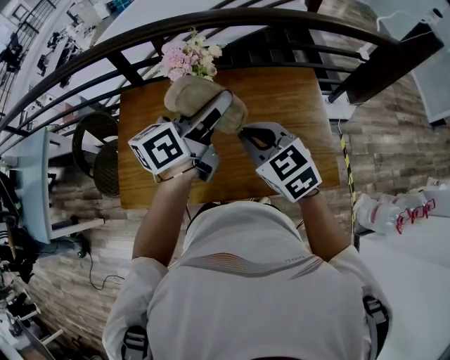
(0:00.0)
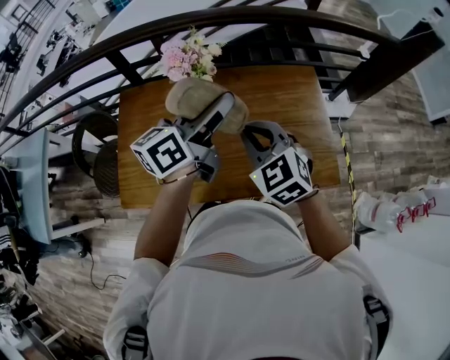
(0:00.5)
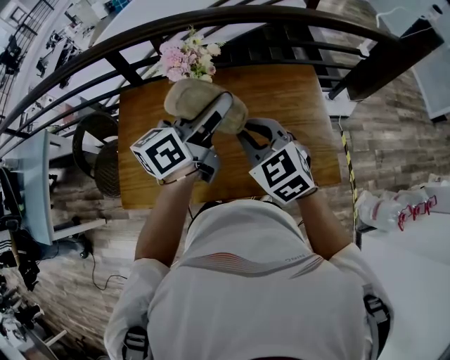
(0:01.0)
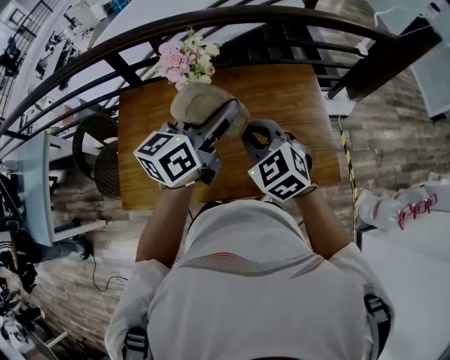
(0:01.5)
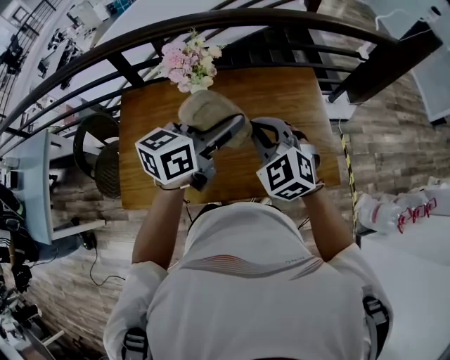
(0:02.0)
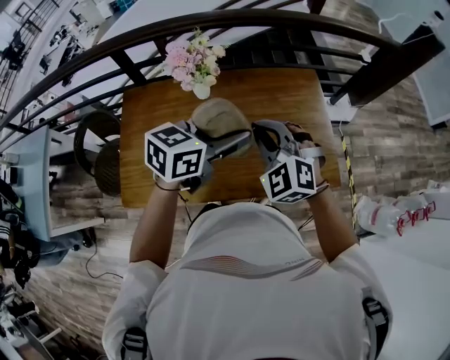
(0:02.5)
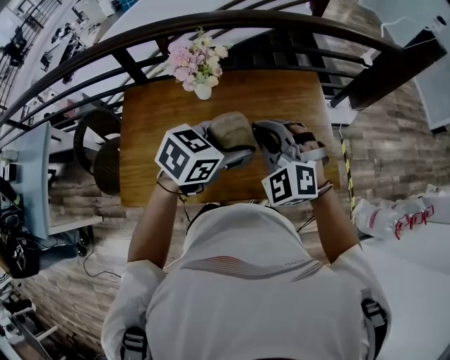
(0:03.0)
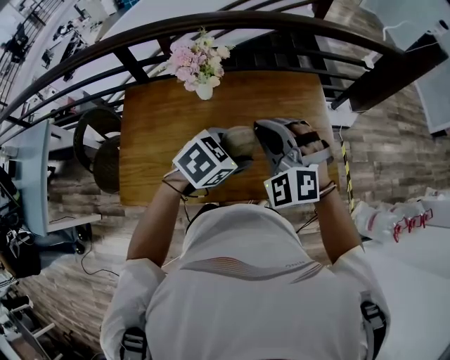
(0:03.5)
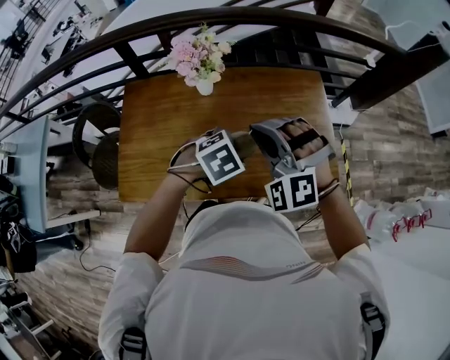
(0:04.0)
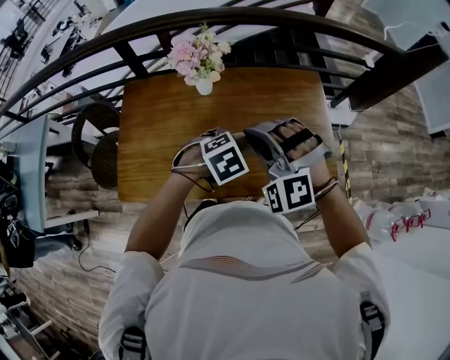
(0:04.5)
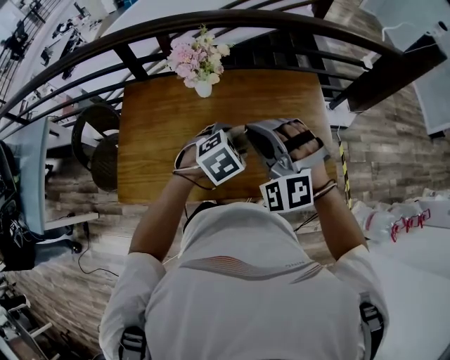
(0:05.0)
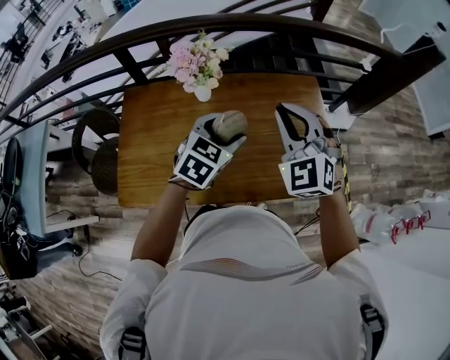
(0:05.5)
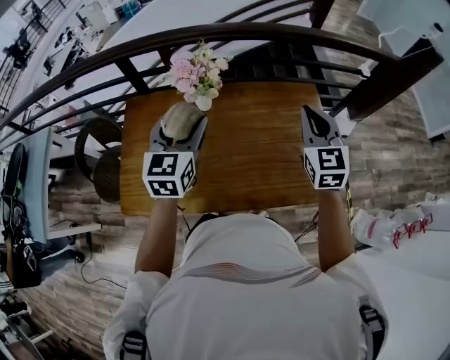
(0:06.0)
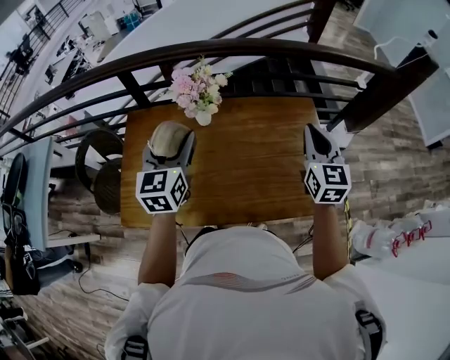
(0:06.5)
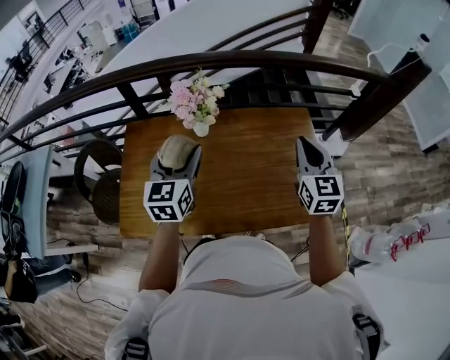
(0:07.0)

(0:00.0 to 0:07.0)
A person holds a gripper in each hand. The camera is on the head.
0:00.0 - 0:02.0: The right gripper swivels roughly 30 degrees; the left gripper moves about 5 cm, and swivels approximately 20 degrees.
0:02.0 - 0:03.5: The left gripper heads downward, covering some 10 cm, and tips its fingers downward by some 40 degrees, while the right gripper rotates approximately 30 degrees.
0:03.5 - 0:05.0: The left gripper heads downward, covering roughly 5 cm.
0:05.0 - 0:07.0: The left gripper heads to the left and upward, covering roughly 20 cm, and points its fingers roughly 50 degrees further upward. The right gripper travels to the right and forward by some 20 cm, and rolls clockwise, seen from behind, by roughly 70 degrees.

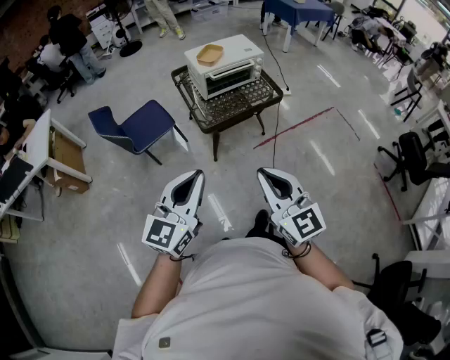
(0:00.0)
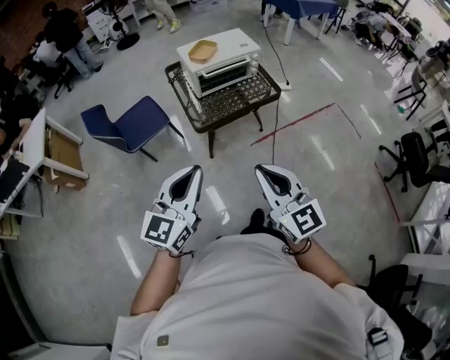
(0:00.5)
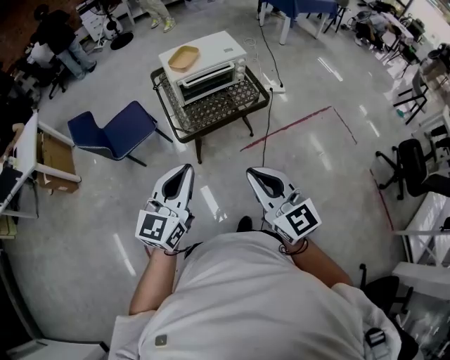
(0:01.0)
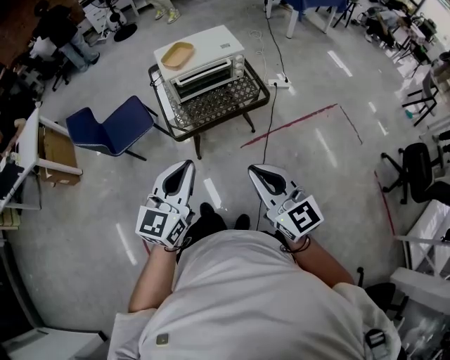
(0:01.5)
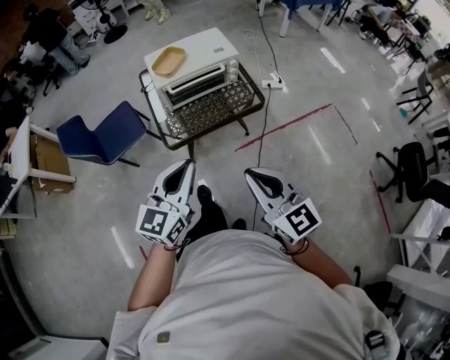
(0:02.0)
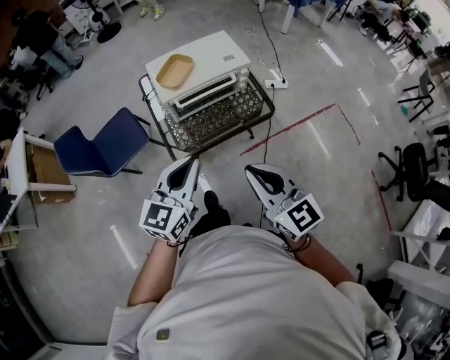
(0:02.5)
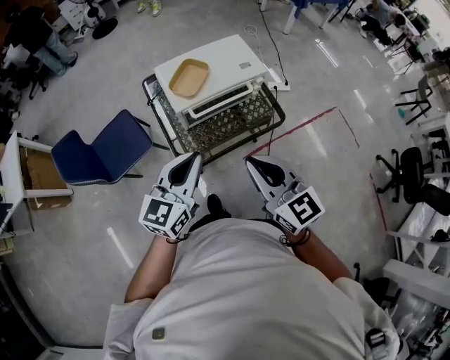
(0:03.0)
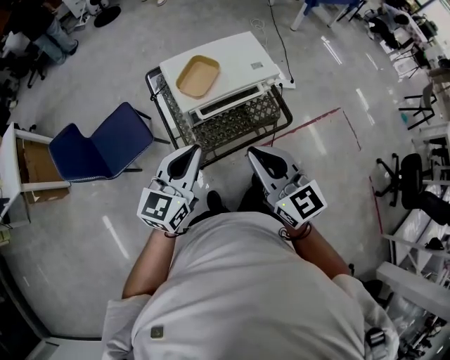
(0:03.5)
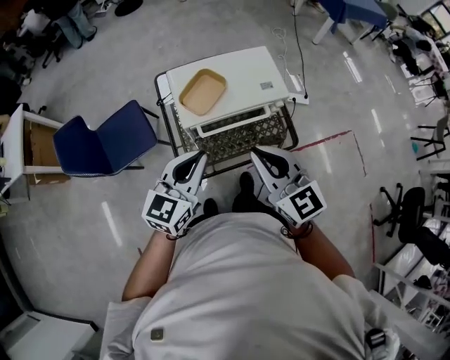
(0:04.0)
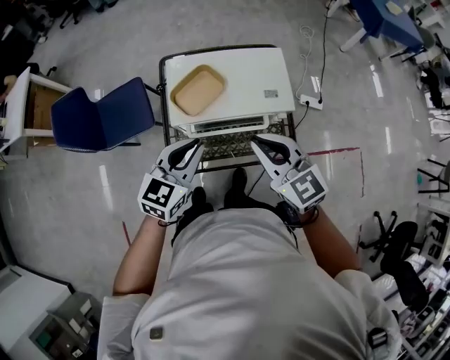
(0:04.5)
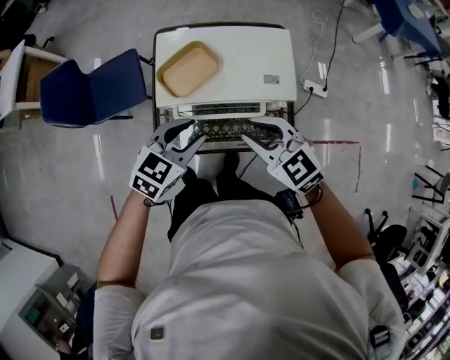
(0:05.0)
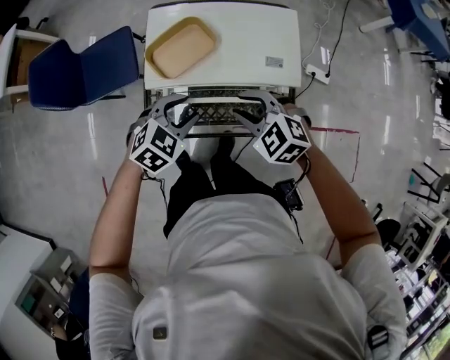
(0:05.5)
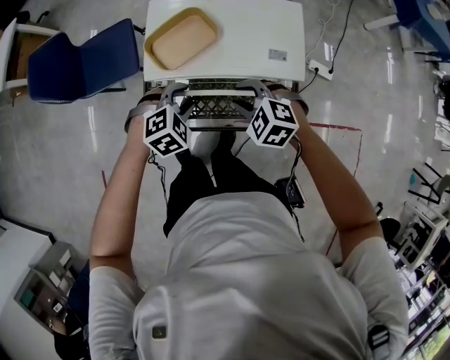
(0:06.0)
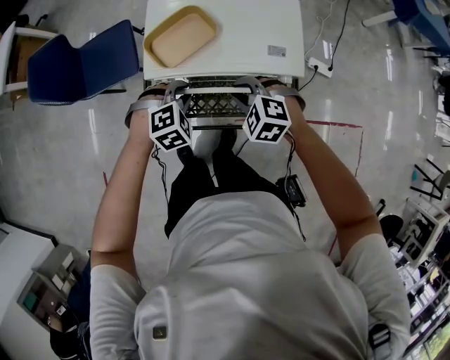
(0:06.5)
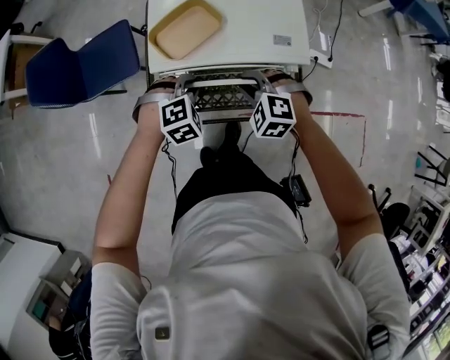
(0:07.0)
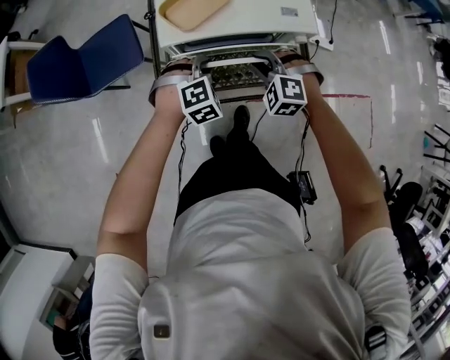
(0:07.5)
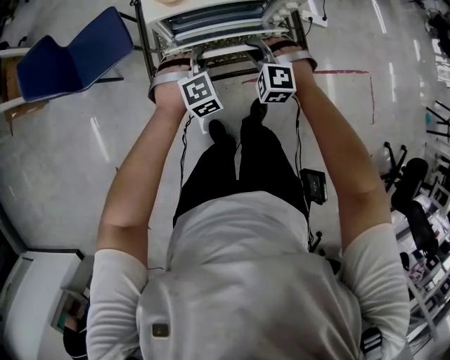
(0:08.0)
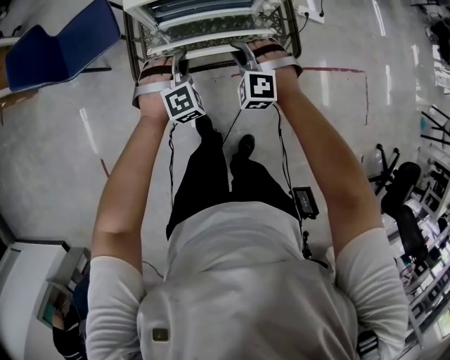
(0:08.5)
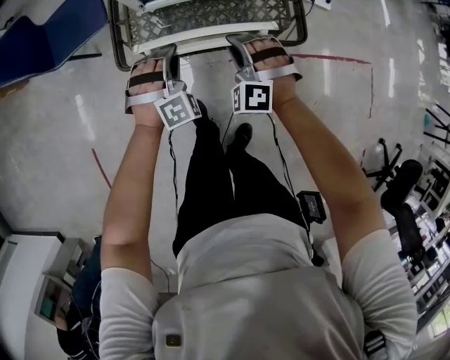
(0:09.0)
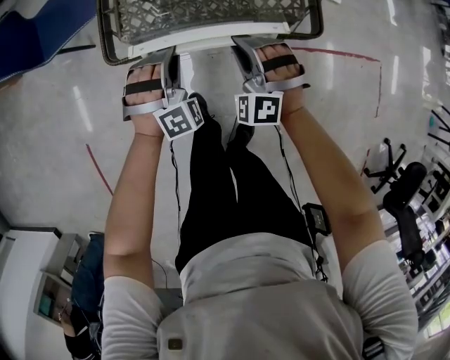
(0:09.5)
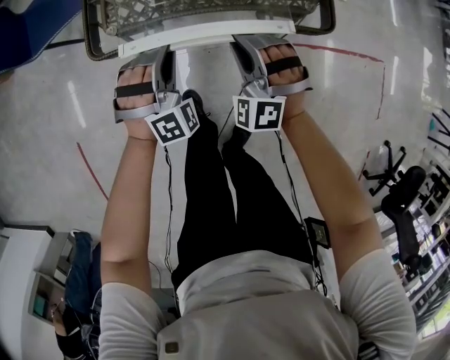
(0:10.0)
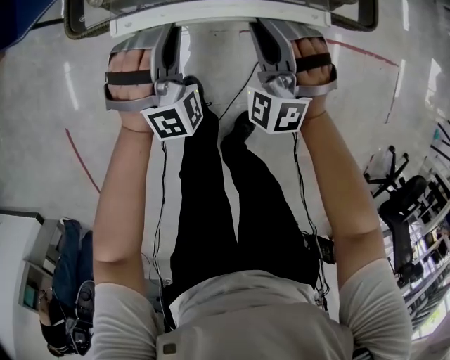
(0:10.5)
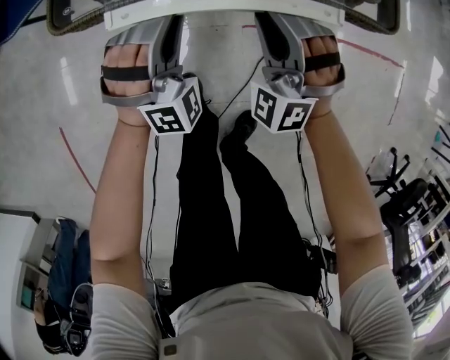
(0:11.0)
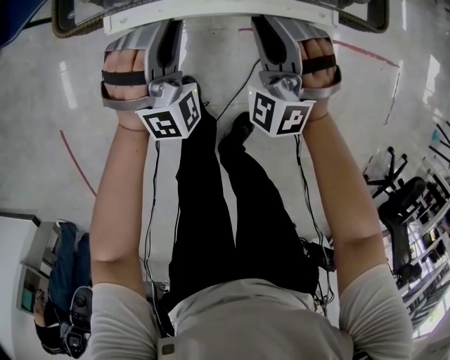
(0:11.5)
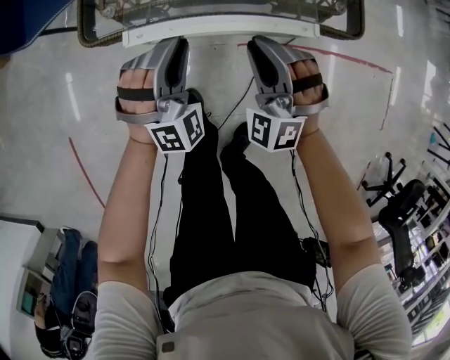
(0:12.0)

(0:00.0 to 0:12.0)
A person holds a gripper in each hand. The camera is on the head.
0:00.0 - 0:02.0: The grippers both shift forward and to the right by some 30 cm.
0:02.0 - 0:04.0: Both grippers move forward, approximately 35 cm.
0:04.0 - 0:06.0: The left gripper moves downward, roughly 25 cm, angles its fingers downward, by approximately 50 degrees, and opens; the right gripper goes roughly 30 cm downward and forward, points its fingers roughly 40 degrees further downward, and opens.
0:06.0 - 0:08.0: The two grippers go approximately 10 cm backward. The left gripper swivels approximately 20 degrees, and closes up. The right gripper swivels about 30 degrees.
0:08.0 - 0:10.0: Both grippers move downward and backward, about 20 cm. The right gripper swivels some 20 degrees. The left gripper rotates approximately 20 degrees.
0:10.0 - 0:12.0: The left gripper travels downward and back again, some 10 cm each way. The right gripper moves approximately 10 cm downward and comes back.

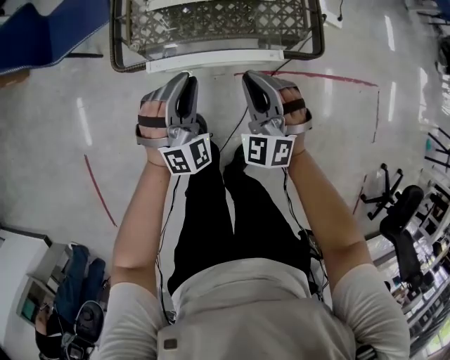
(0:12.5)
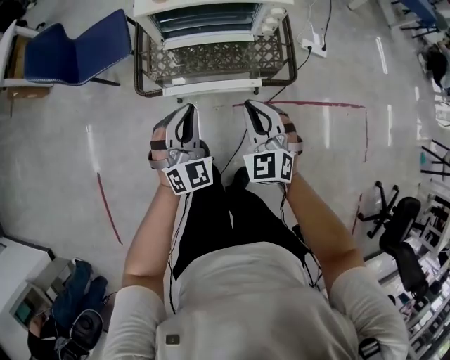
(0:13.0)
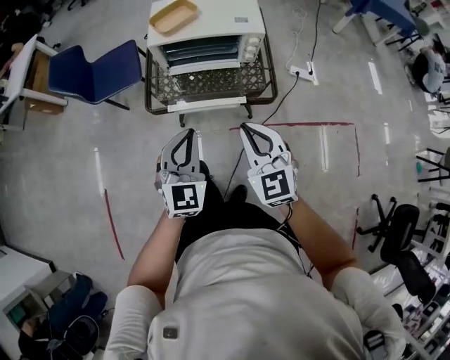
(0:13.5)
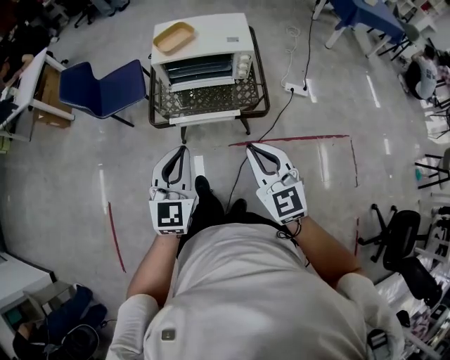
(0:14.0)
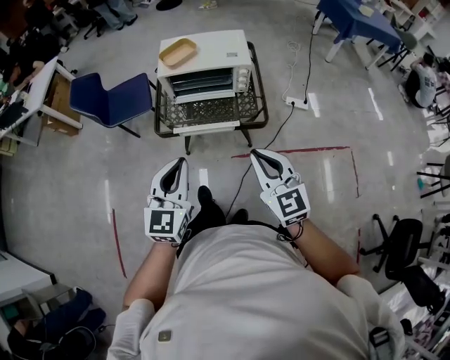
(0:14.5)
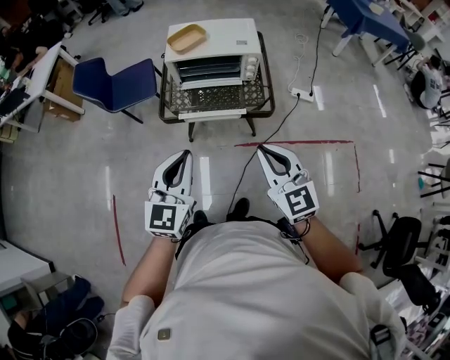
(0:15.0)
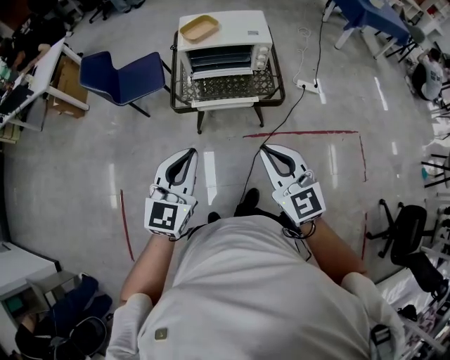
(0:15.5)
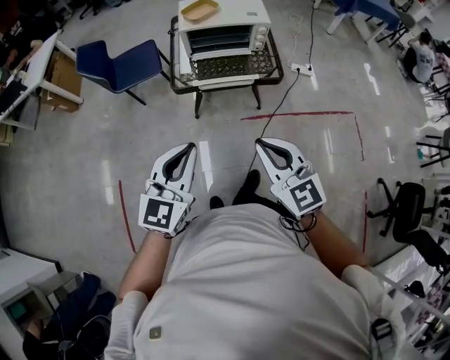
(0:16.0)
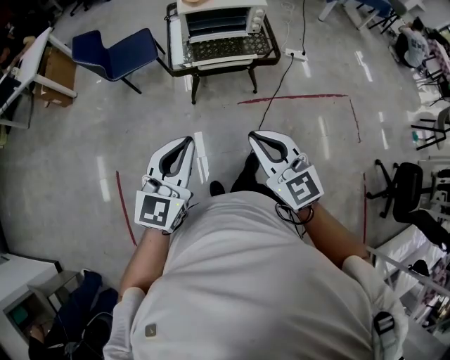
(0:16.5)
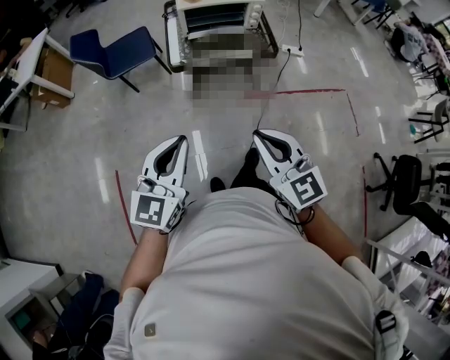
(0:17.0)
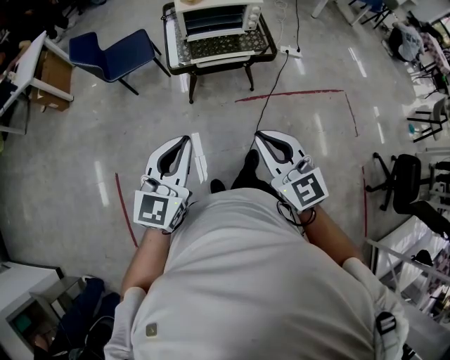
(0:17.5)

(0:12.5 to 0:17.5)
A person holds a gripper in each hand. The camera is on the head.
0:12.5 - 0:15.0: Both grippers move upward and backward, some 50 cm. The right gripper rolls clockwise, seen from behind, by approximately 40 degrees. The left gripper rotates around the line of its fingers by about 50 degrees, counterclockwise from behind, and closes up.
0:15.0 - 0:17.5: Both grippers move backward and to the left, roughly 30 cm.

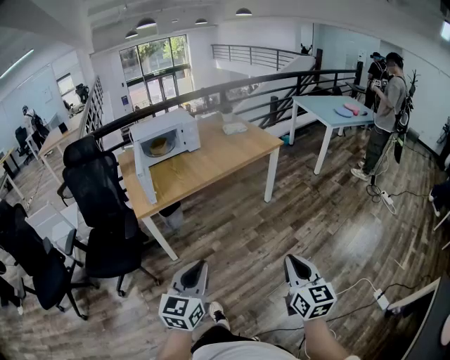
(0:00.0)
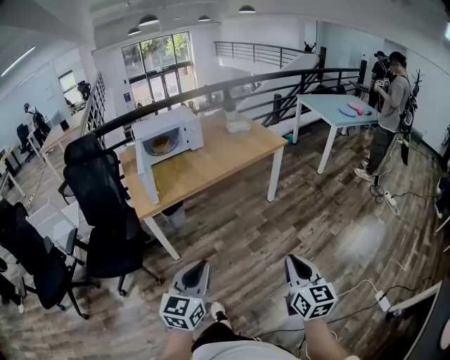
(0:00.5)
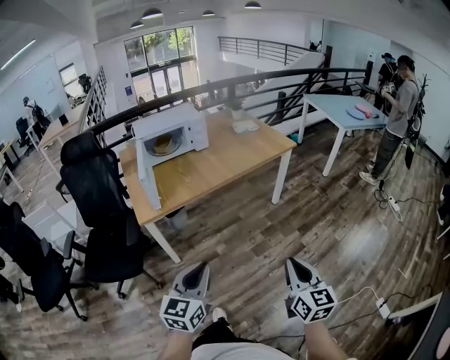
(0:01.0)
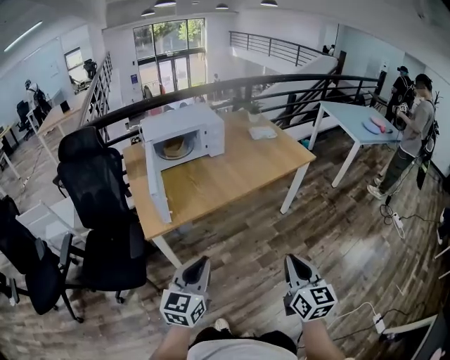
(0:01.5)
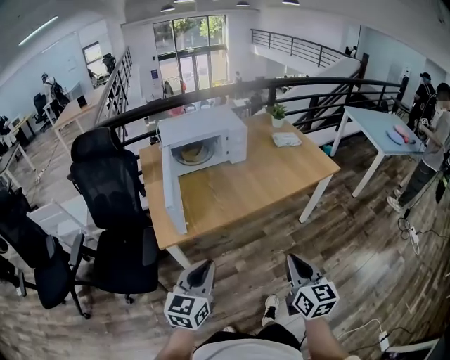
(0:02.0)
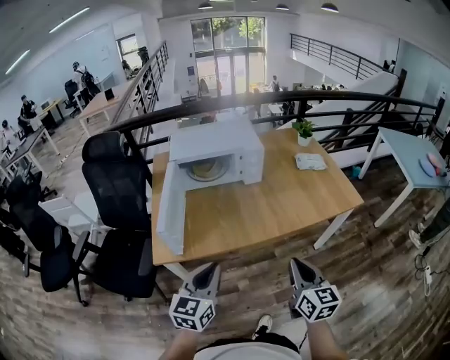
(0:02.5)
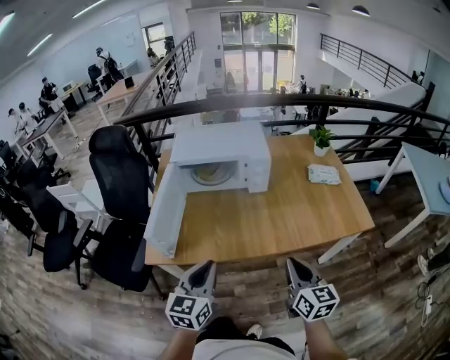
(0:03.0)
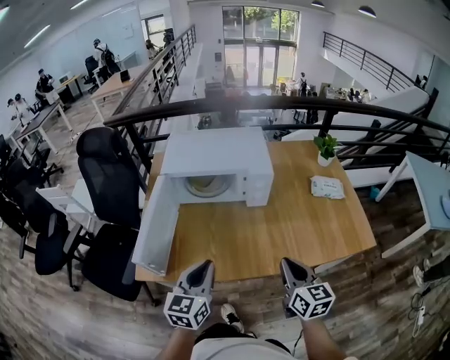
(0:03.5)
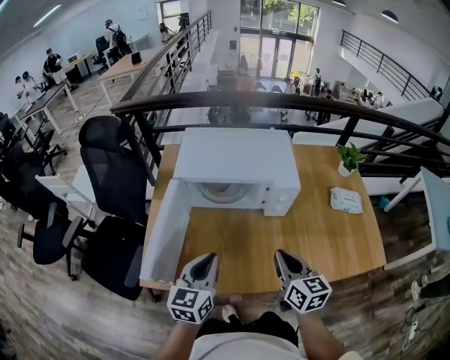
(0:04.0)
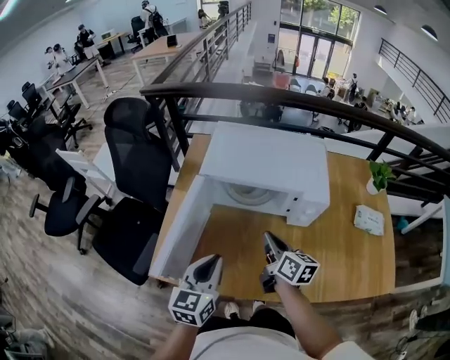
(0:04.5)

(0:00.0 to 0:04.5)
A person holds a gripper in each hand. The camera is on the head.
0:00.0 - 0:02.0: Both grippers move forward and to the left, approximately 35 cm.
0:02.0 - 0:04.5: Both grippers are carried approximately 50 cm. The left gripper turns by approximately 30 degrees; the right gripper turns by approximately 50 degrees.
